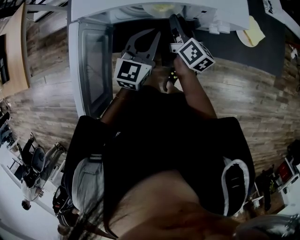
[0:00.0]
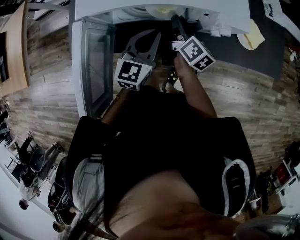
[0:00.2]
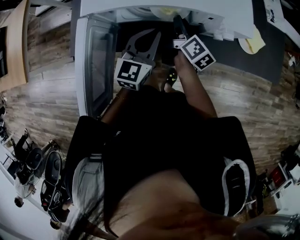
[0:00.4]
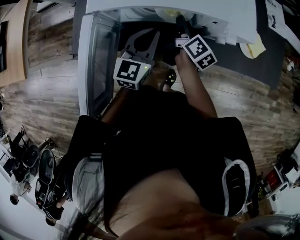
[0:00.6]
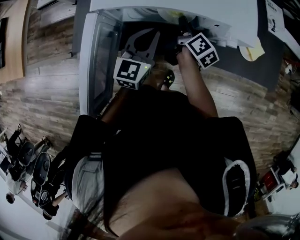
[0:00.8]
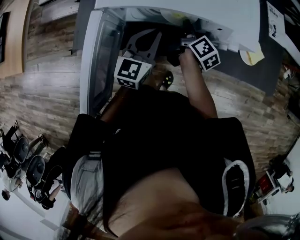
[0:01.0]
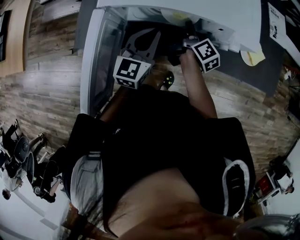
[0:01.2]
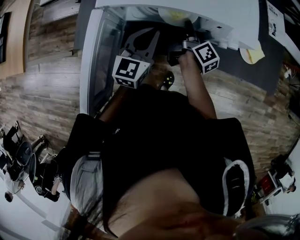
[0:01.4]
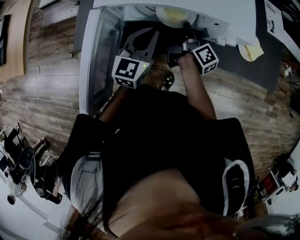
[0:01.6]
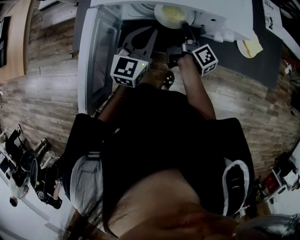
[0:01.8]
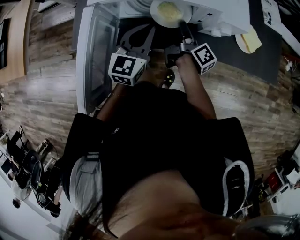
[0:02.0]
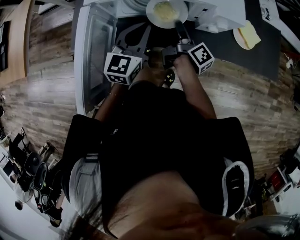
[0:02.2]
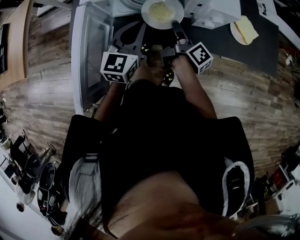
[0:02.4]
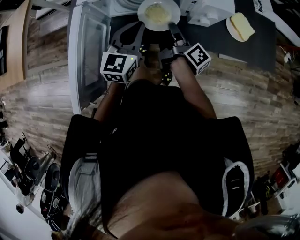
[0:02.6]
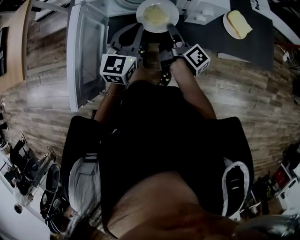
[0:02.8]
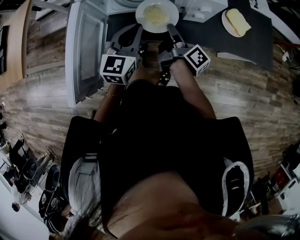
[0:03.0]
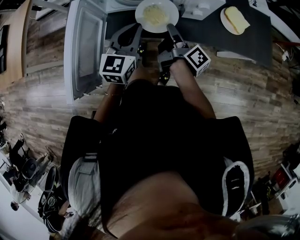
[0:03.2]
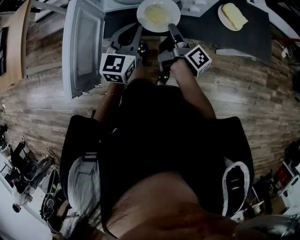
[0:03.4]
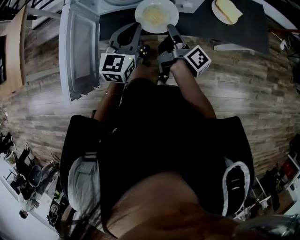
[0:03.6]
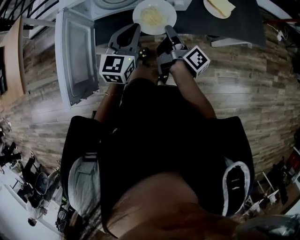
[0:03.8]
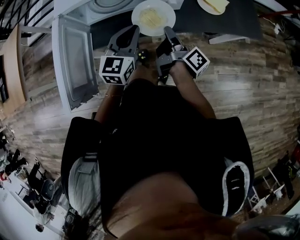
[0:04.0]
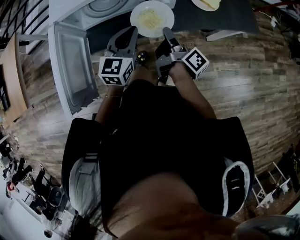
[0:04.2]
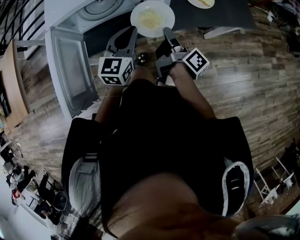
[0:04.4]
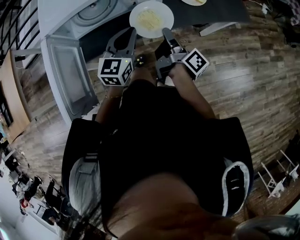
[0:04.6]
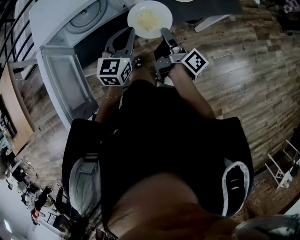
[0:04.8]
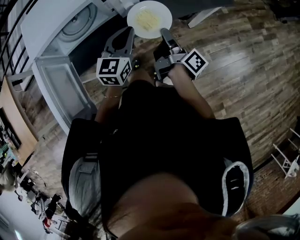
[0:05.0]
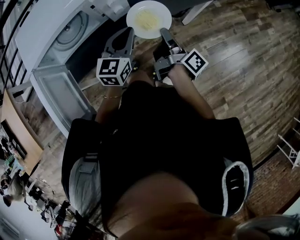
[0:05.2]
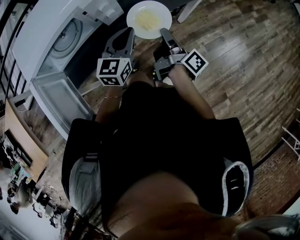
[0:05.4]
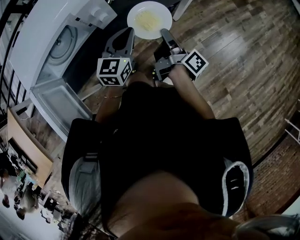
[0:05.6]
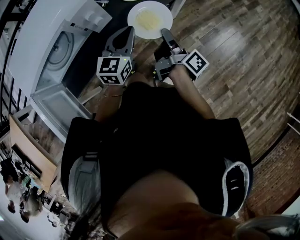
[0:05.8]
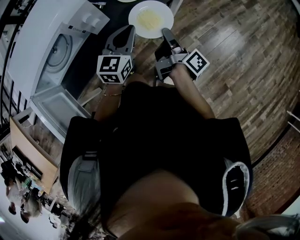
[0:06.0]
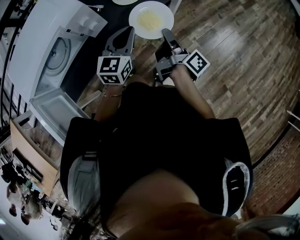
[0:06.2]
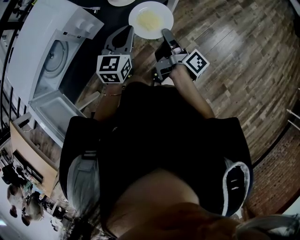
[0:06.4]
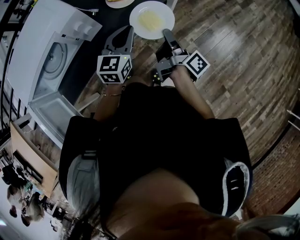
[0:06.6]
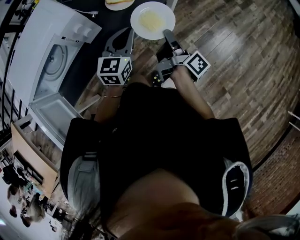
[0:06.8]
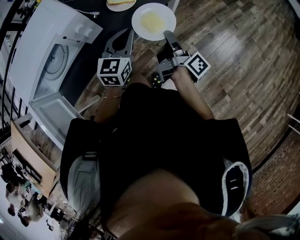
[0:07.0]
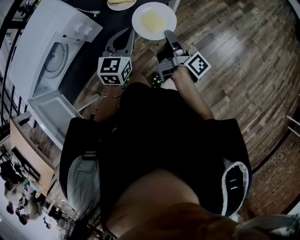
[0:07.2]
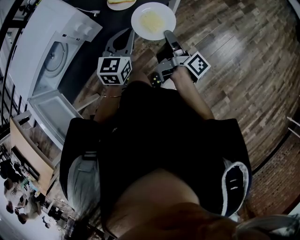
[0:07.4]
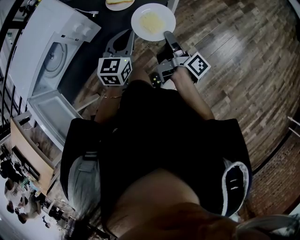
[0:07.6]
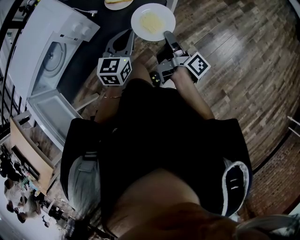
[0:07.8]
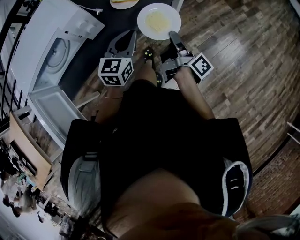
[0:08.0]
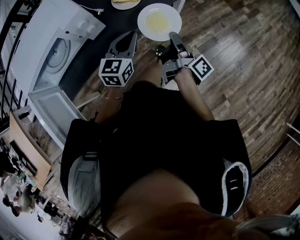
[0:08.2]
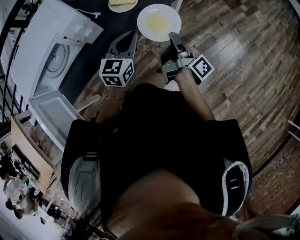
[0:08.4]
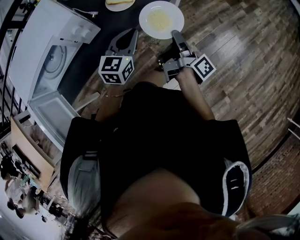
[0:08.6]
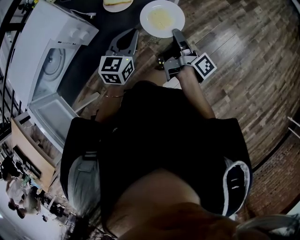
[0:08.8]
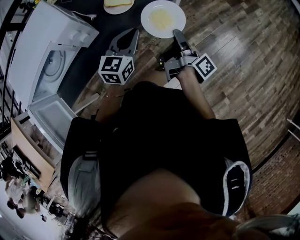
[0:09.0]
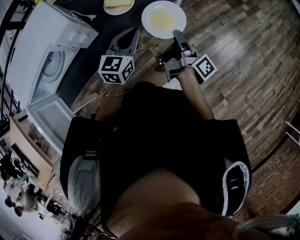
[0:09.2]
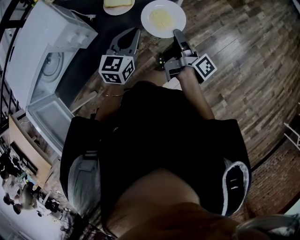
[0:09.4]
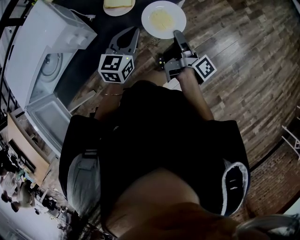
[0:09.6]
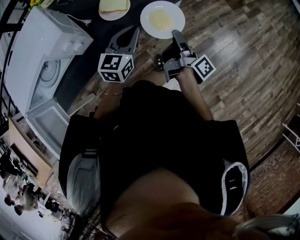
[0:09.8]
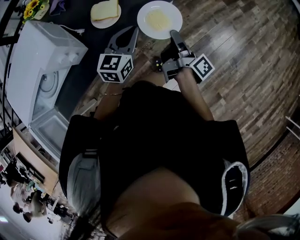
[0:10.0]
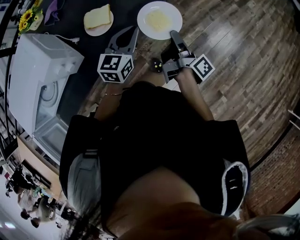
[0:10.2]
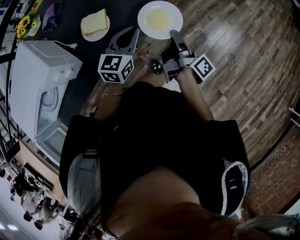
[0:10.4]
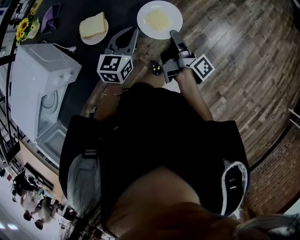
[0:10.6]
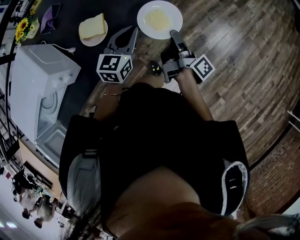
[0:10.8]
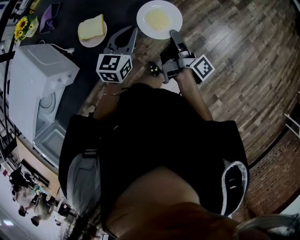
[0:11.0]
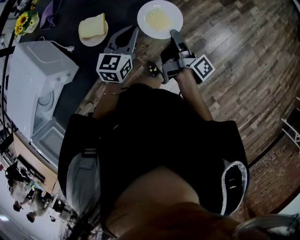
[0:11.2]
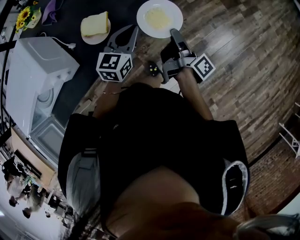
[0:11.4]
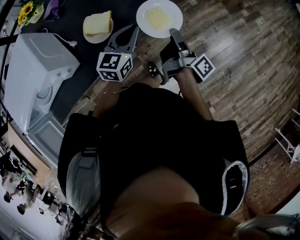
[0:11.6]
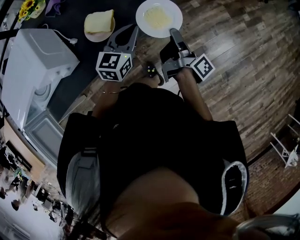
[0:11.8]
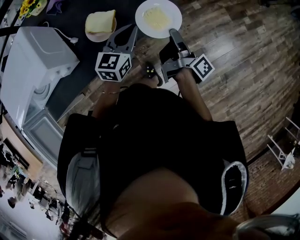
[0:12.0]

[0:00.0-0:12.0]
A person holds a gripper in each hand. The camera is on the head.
0:00.0 to 0:01.6: The left gripper moves approximately 5 cm. The right gripper swivels roughly 30 degrees, and closes.
0:01.6 to 0:03.0: The right gripper shifts about 10 cm backward; the left gripper travels backward by approximately 5 cm.
0:03.0 to 0:04.4: The left gripper shifts some 10 cm to the right. Meanwhile the right gripper moves to the right and backward, roughly 10 cm.
0:04.4 to 0:06.0: The right gripper ends up some 20 cm from where it was, and rotates some 30 degrees, while the left gripper moves approximately 20 cm, and turns by about 30 degrees.
0:06.0 to 0:07.6: The right gripper moves to the right, approximately 5 cm.
0:07.6 to 0:09.0: The right gripper ends up about 5 cm from where it was.
0:09.0 to 0:10.4: The two grippers go about 15 cm forward and to the right.
0:10.4 to 0:12.0: The grippers both shift forward by approximately 10 cm.

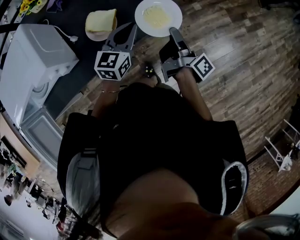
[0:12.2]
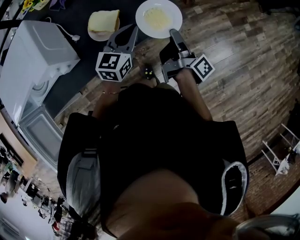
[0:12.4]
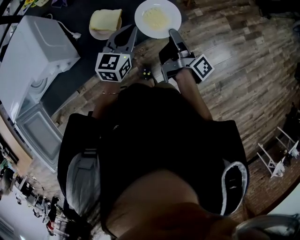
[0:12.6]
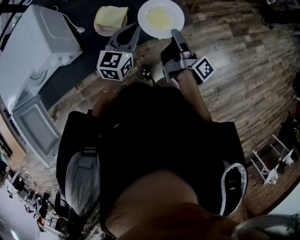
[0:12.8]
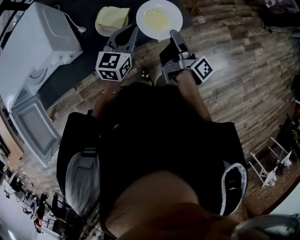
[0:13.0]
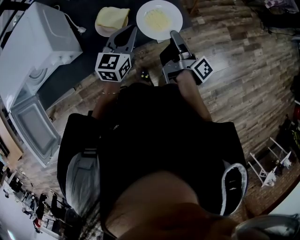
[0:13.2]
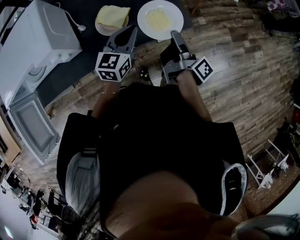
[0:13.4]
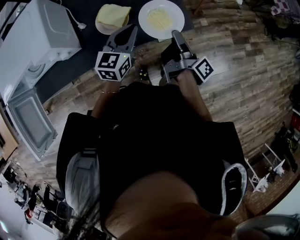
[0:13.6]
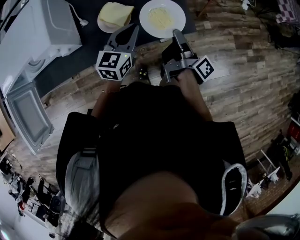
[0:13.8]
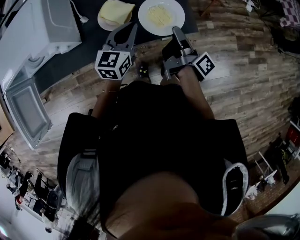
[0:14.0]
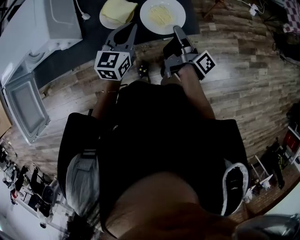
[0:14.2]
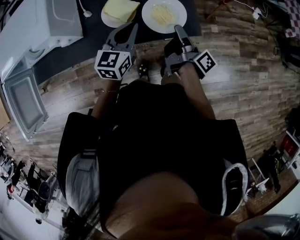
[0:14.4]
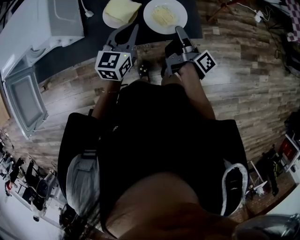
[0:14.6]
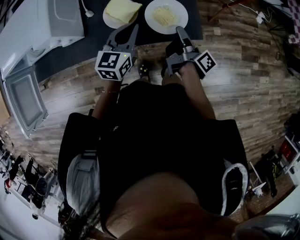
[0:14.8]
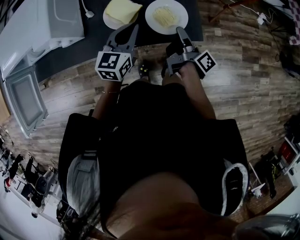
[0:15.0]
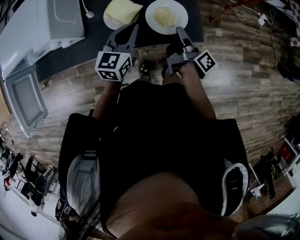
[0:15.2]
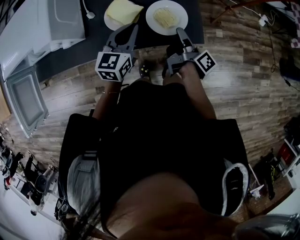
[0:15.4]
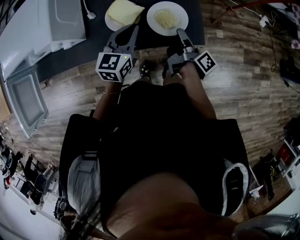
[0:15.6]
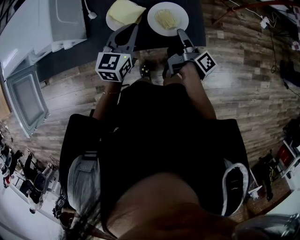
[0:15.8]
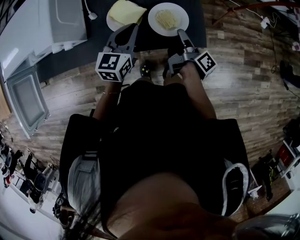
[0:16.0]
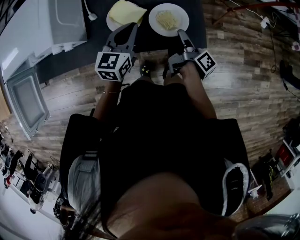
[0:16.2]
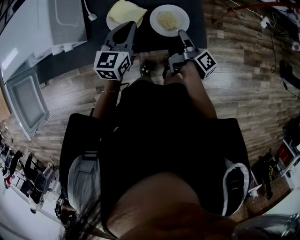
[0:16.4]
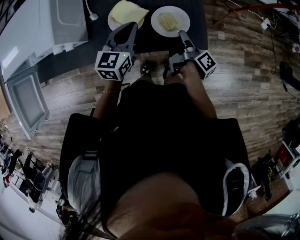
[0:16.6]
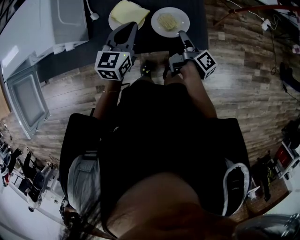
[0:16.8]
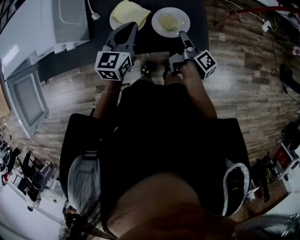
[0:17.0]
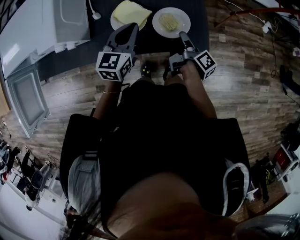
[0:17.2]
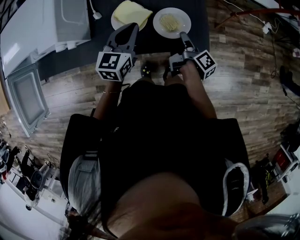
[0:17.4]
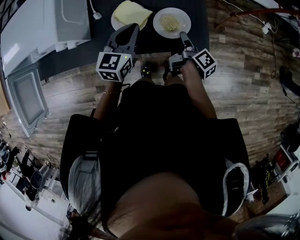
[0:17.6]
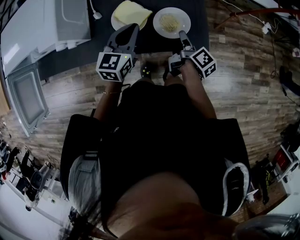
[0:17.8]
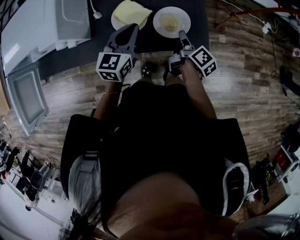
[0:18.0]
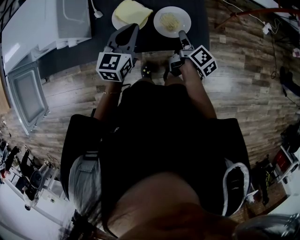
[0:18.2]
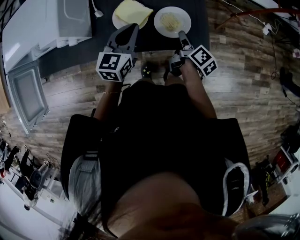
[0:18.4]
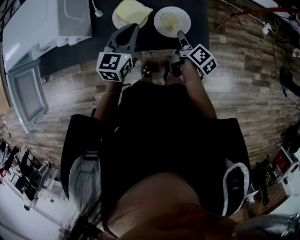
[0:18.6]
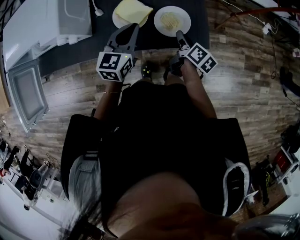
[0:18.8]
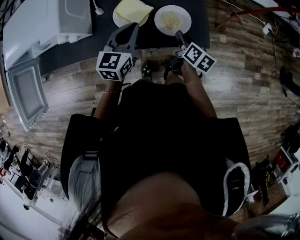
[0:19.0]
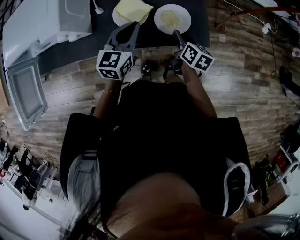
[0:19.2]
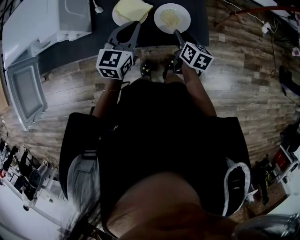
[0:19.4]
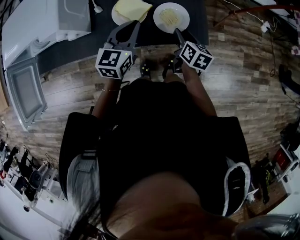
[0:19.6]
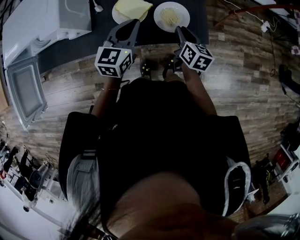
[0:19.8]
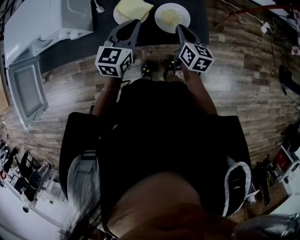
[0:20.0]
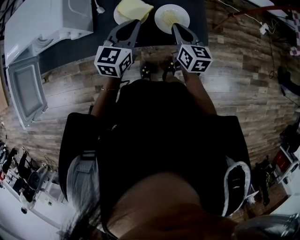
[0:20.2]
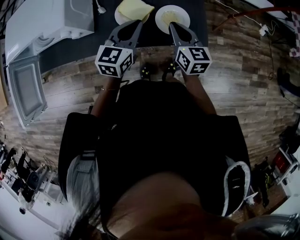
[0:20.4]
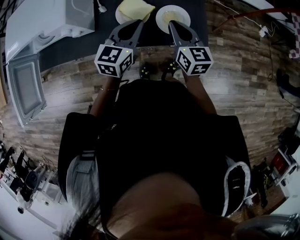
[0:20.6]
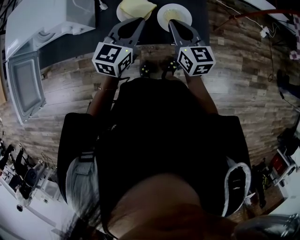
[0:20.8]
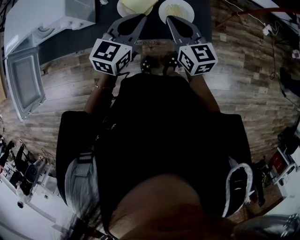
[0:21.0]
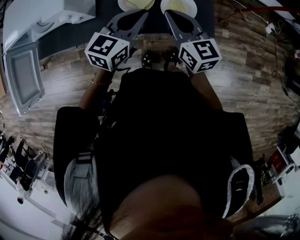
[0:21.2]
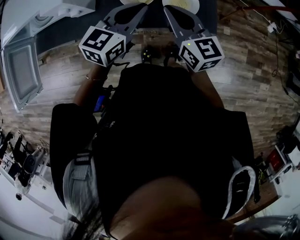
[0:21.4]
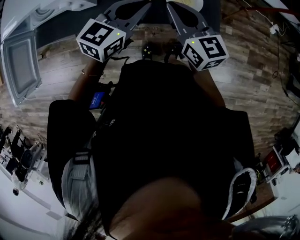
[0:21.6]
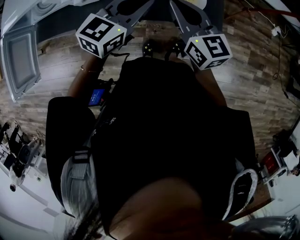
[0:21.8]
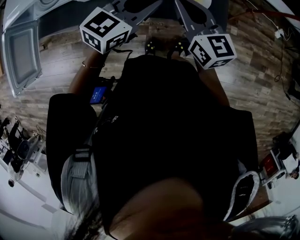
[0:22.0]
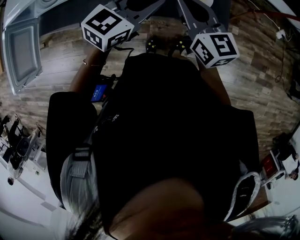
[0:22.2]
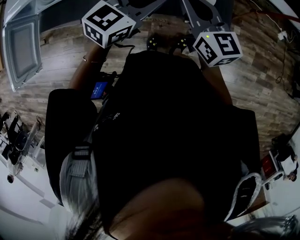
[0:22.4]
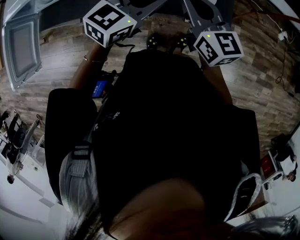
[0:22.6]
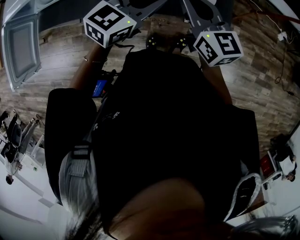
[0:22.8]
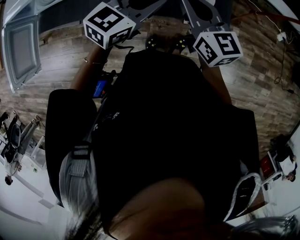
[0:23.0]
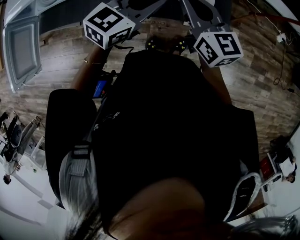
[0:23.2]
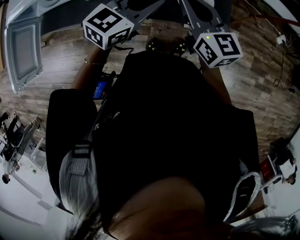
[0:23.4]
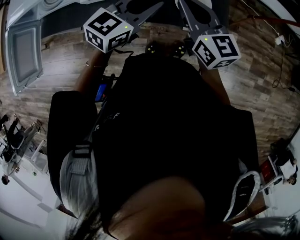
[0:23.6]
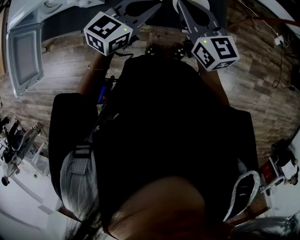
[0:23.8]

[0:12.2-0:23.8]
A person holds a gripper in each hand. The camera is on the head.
0:12.2 to 0:13.6: There are only small adjustments of the grippers.
0:13.6 to 0:15.0: The right gripper heads forward and downward, covering approximately 10 cm.
0:15.0 to 0:16.6: The right gripper ends up roughly 5 cm from where it was.
0:16.6 to 0:18.0: The right gripper changes its angle by approximately 20 degrees.
0:18.0 to 0:19.4: The right gripper swivels approximately 40 degrees, and opens.
0:19.4 to 0:21.0: The right gripper travels upward and to the left by roughly 15 cm, turns by approximately 40 degrees, and closes. Meanwhile the left gripper ends up approximately 5 cm from where it was.
0:21.0 to 0:23.8: There are only small adjustments of the grippers.
